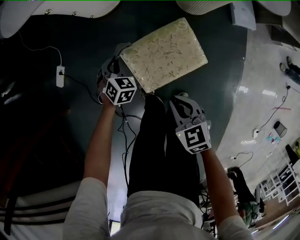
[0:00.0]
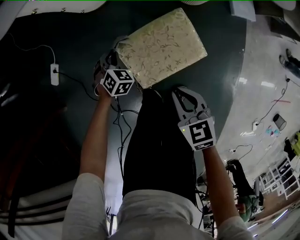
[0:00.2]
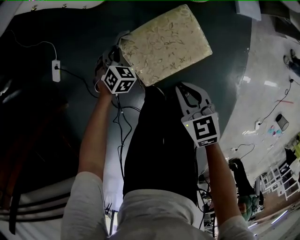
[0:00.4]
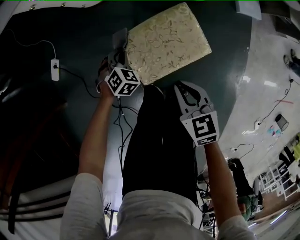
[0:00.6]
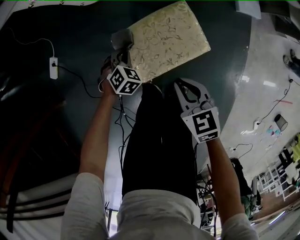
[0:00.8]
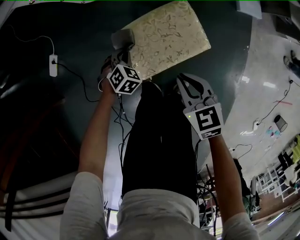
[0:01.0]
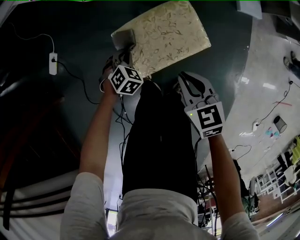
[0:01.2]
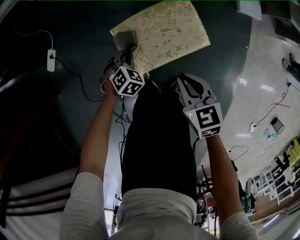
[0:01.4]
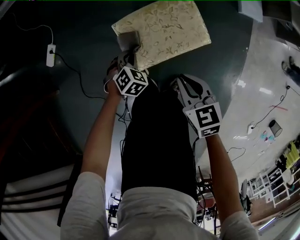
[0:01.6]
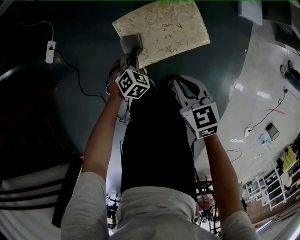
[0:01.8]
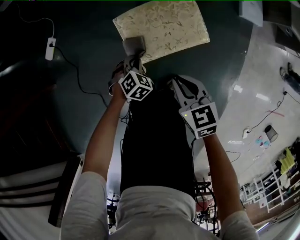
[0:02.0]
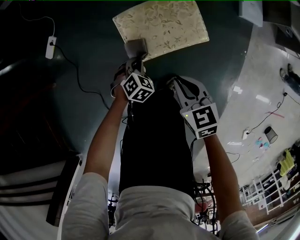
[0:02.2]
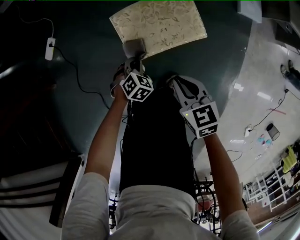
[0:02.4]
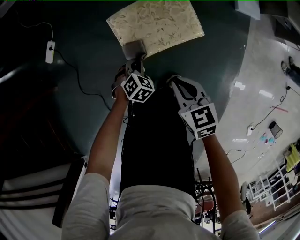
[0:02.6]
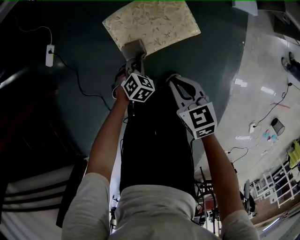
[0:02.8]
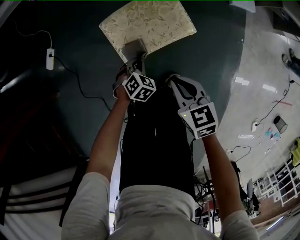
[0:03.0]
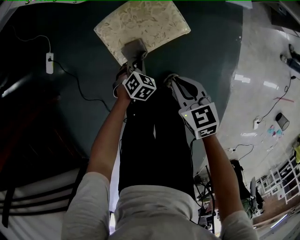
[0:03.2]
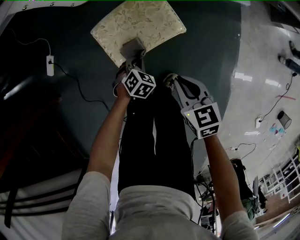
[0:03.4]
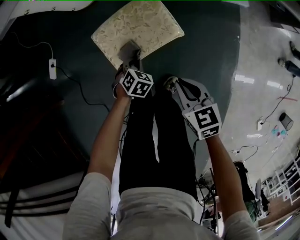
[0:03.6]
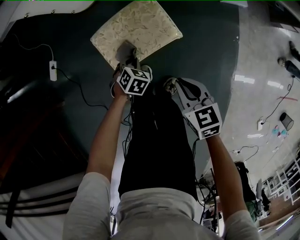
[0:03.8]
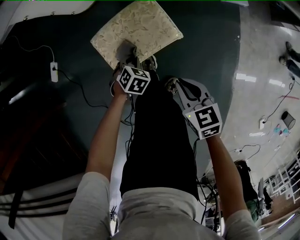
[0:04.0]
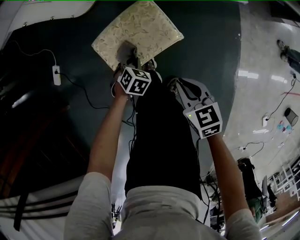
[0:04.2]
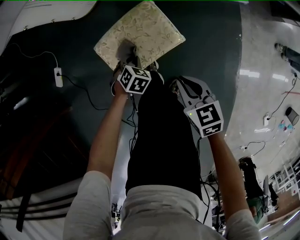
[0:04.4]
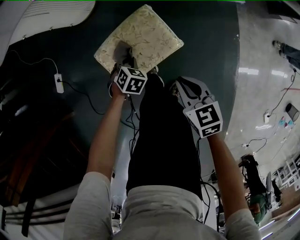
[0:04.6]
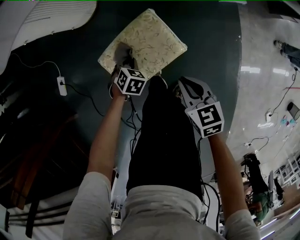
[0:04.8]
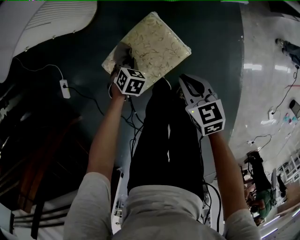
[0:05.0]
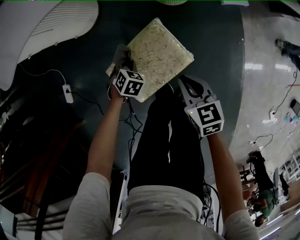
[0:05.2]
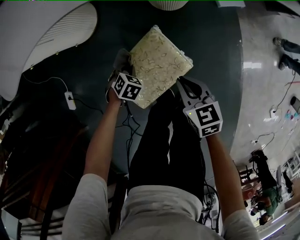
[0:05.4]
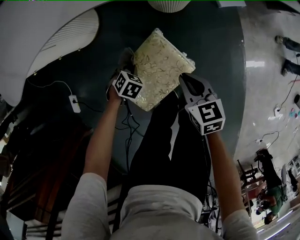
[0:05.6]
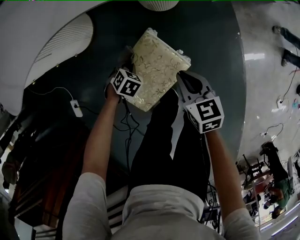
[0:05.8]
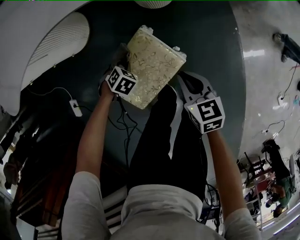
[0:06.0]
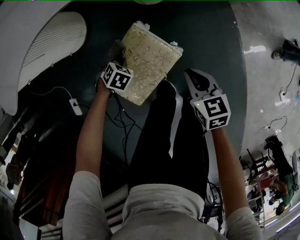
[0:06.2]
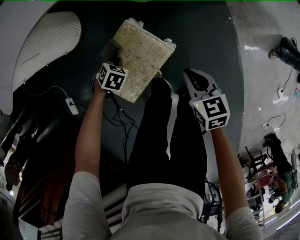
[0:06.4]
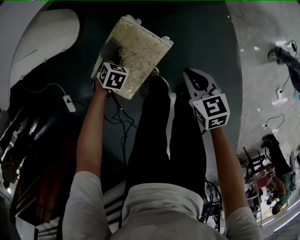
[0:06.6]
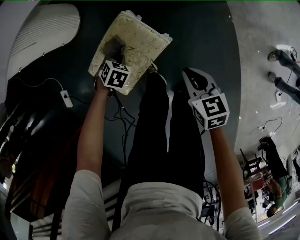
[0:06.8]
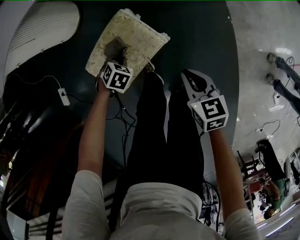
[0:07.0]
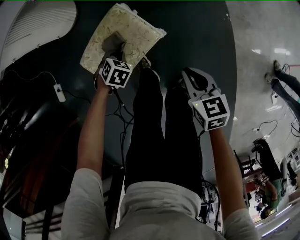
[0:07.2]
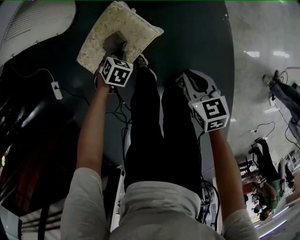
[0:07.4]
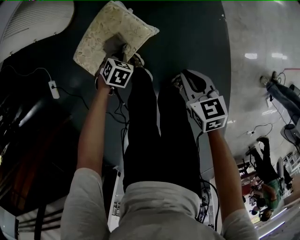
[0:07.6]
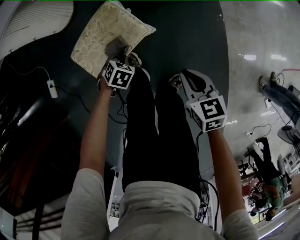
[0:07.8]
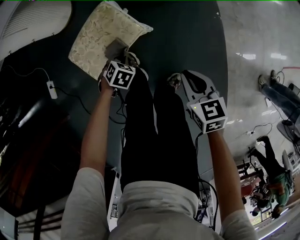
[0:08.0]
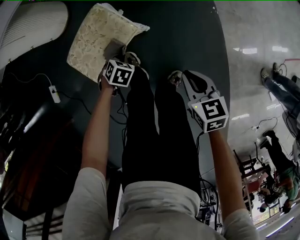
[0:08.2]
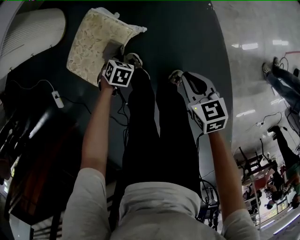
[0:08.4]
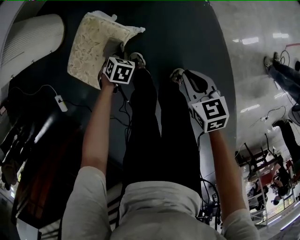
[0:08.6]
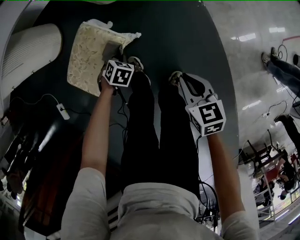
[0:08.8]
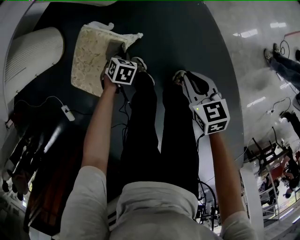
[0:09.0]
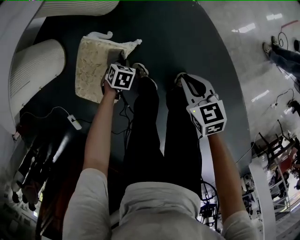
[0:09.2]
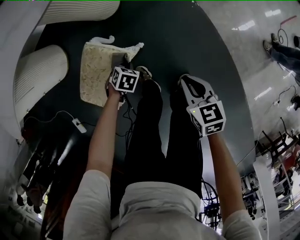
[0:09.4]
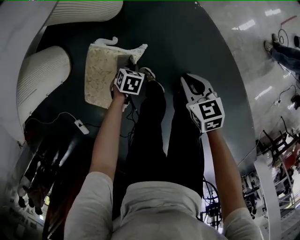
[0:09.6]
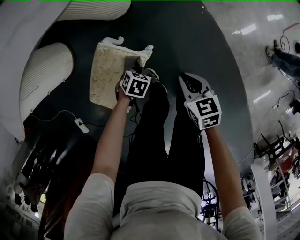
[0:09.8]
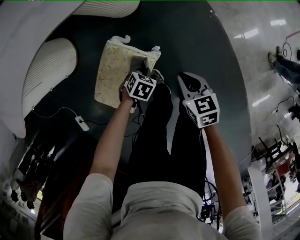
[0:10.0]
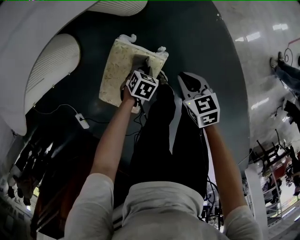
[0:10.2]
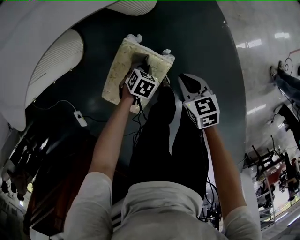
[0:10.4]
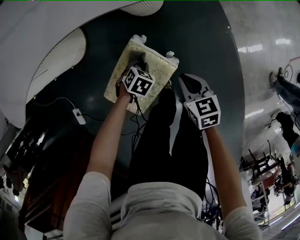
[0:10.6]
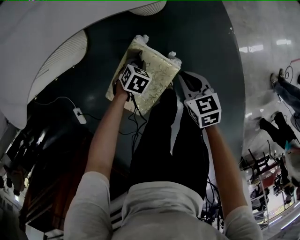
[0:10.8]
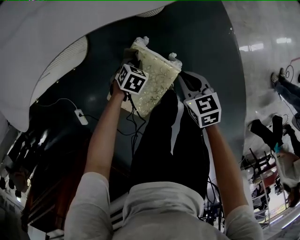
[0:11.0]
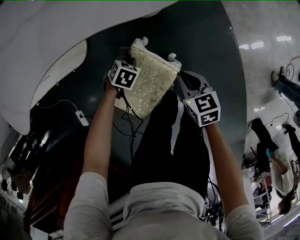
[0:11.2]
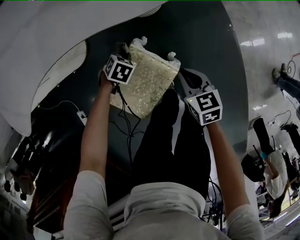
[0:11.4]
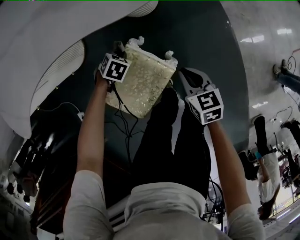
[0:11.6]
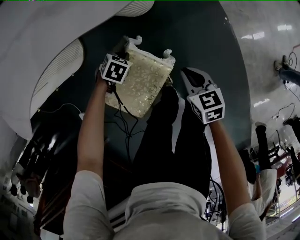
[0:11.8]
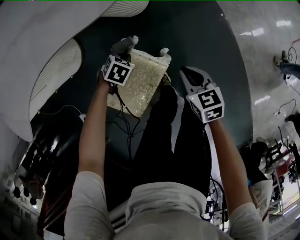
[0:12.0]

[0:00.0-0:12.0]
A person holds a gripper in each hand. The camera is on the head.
0.0 to 1.6 s: The left gripper goes roughly 15 cm backward and downward; the right gripper shifts by roughly 5 cm.
1.6 to 3.0 s: The right gripper moves backward, about 5 cm, while the left gripper is displaced backward and to the right by about 10 cm.
3.0 to 4.4 s: The right gripper travels to the right by about 10 cm. Meanwhile the left gripper goes approximately 10 cm forward and to the right.
4.4 to 6.0 s: The right gripper ends up some 15 cm from where it was, while the left gripper shifts by about 15 cm, and changes its angle by approximately 20 degrees.
6.0 to 7.6 s: The right gripper moves about 20 cm. The left gripper changes place by some 20 cm.
7.6 to 9.0 s: The left gripper changes place by approximately 10 cm. The right gripper changes place by roughly 10 cm.
9.0 to 10.4 s: The left gripper ends up some 10 cm from where it was, while the right gripper ends up about 25 cm from where it was.

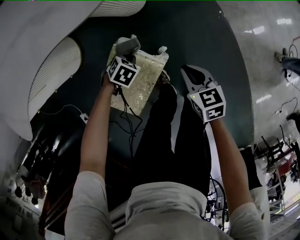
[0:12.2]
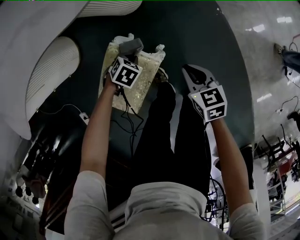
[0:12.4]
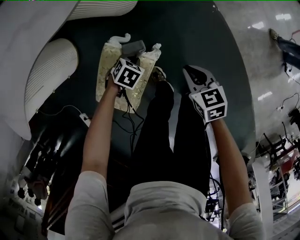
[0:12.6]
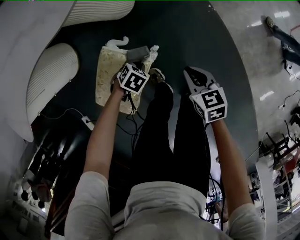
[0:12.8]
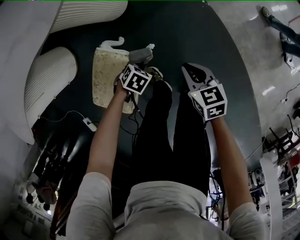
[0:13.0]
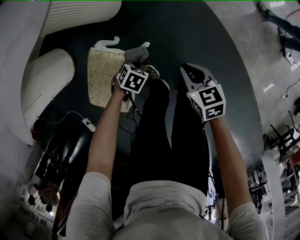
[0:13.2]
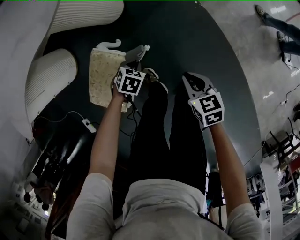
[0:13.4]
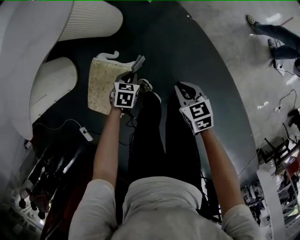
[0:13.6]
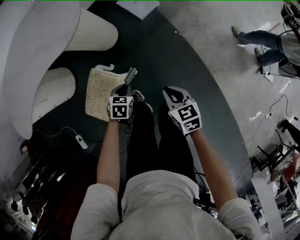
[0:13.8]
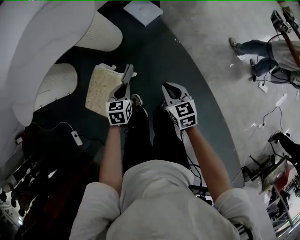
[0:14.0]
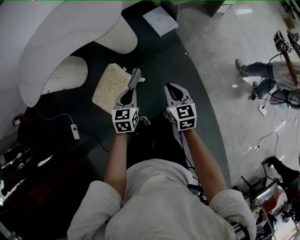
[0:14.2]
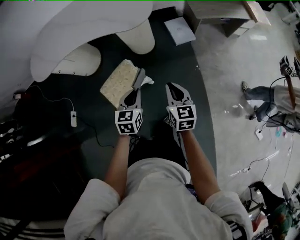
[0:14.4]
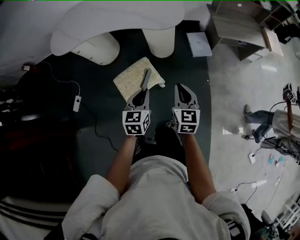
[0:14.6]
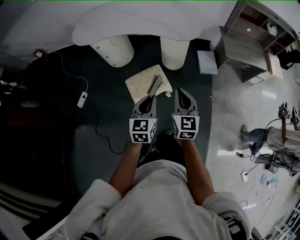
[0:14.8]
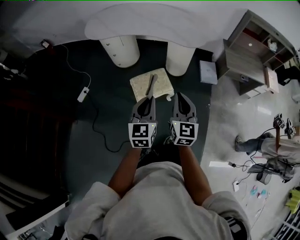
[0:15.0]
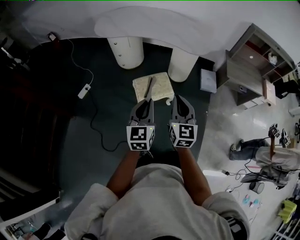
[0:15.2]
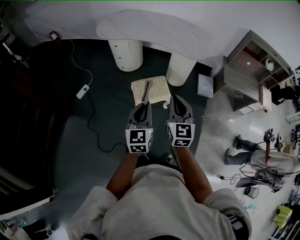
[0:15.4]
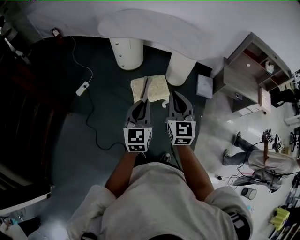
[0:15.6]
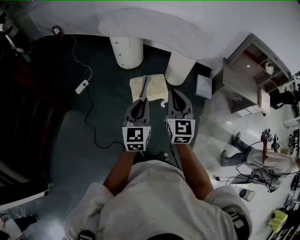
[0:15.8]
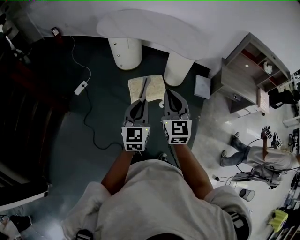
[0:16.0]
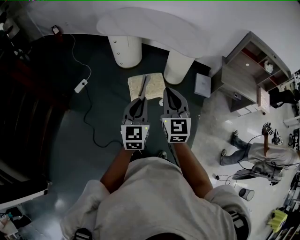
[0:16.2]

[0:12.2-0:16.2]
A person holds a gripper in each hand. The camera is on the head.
12.2 to 13.6 s: The right gripper changes place by roughly 20 cm. Meanwhile the left gripper shifts by about 20 cm.
13.6 to 14.8 s: The two grippers go approximately 50 cm upward. The right gripper points its fingers about 40 degrees further upward. The left gripper angles its fingers upward, by some 50 degrees.
14.8 to 16.2 s: The right gripper is displaced upward, backward and to the left by some 20 cm, and rotates about 20 degrees. Meanwhile the left gripper moves backward and upward, approximately 20 cm, and turns by about 20 degrees.

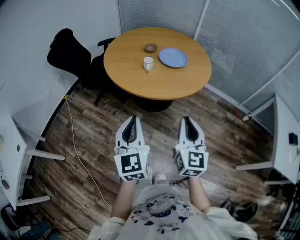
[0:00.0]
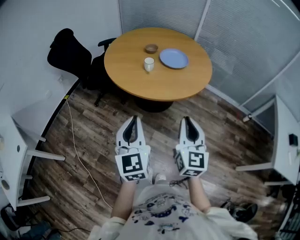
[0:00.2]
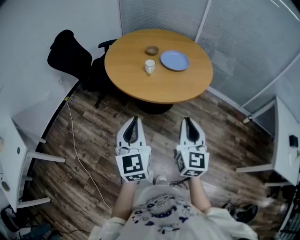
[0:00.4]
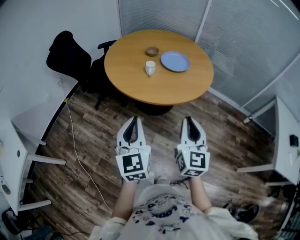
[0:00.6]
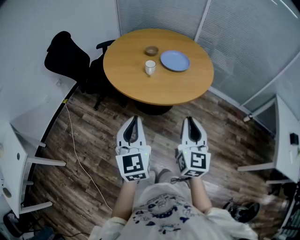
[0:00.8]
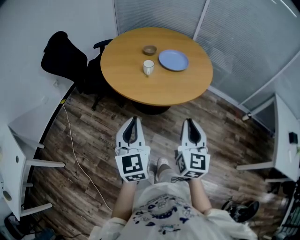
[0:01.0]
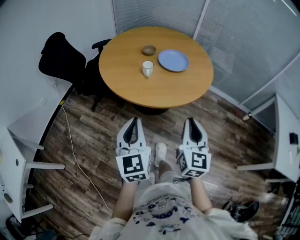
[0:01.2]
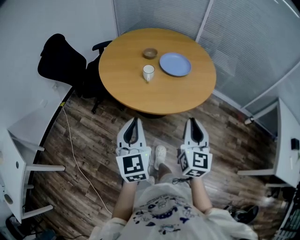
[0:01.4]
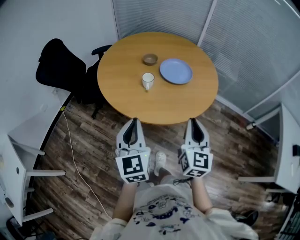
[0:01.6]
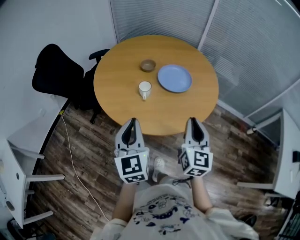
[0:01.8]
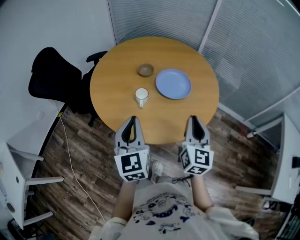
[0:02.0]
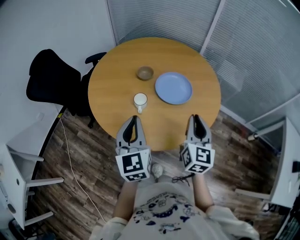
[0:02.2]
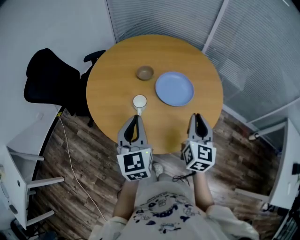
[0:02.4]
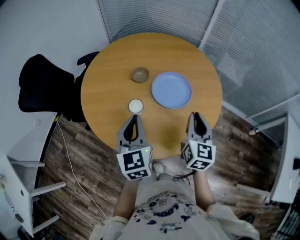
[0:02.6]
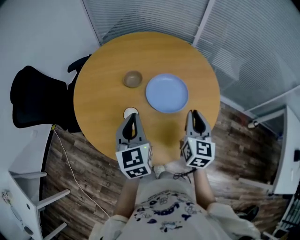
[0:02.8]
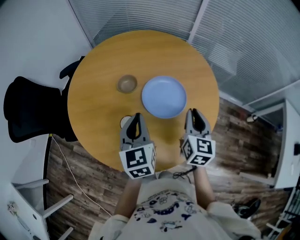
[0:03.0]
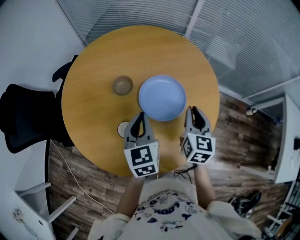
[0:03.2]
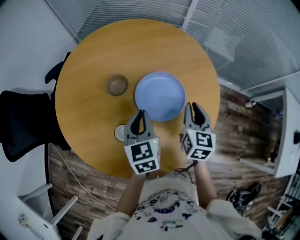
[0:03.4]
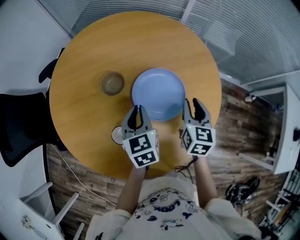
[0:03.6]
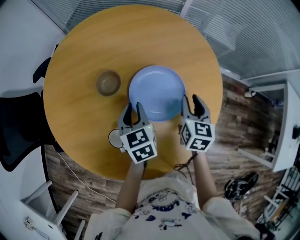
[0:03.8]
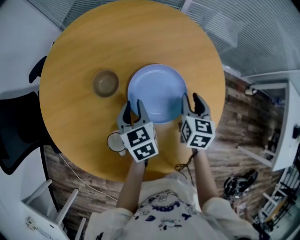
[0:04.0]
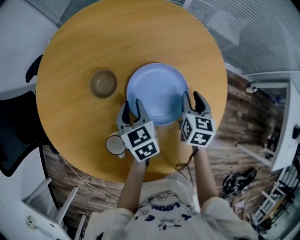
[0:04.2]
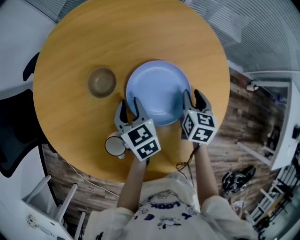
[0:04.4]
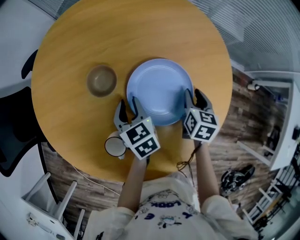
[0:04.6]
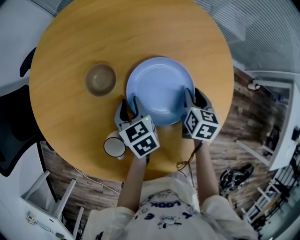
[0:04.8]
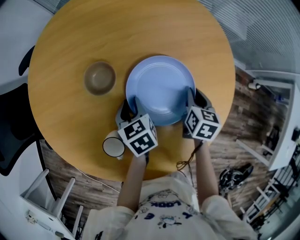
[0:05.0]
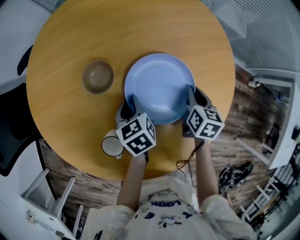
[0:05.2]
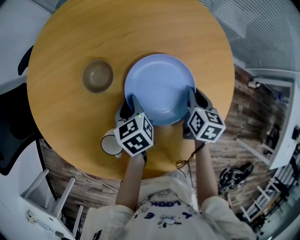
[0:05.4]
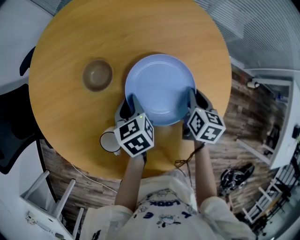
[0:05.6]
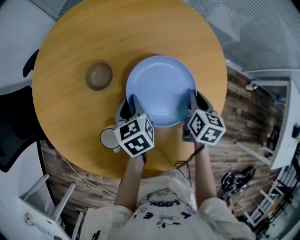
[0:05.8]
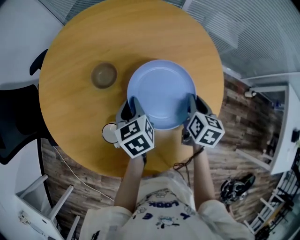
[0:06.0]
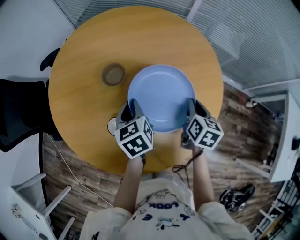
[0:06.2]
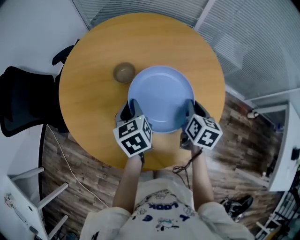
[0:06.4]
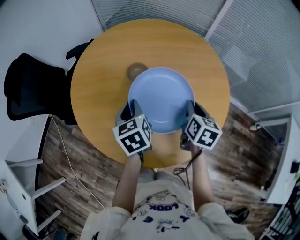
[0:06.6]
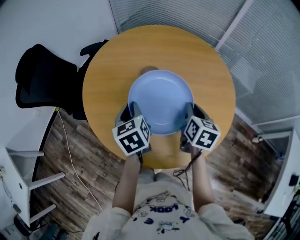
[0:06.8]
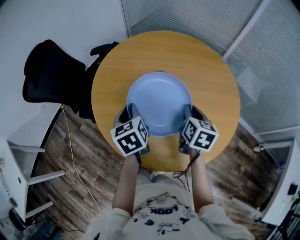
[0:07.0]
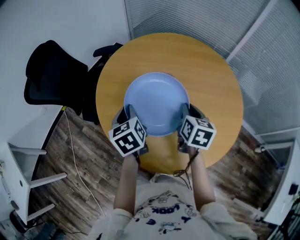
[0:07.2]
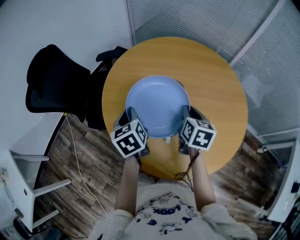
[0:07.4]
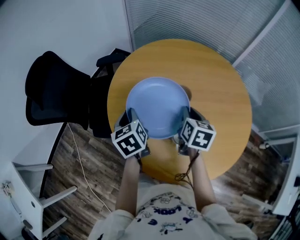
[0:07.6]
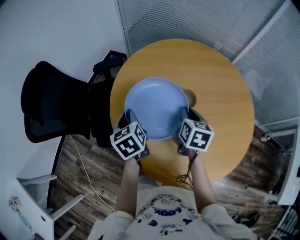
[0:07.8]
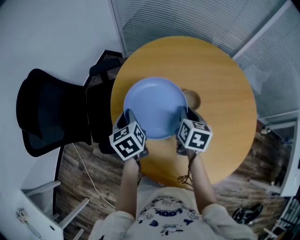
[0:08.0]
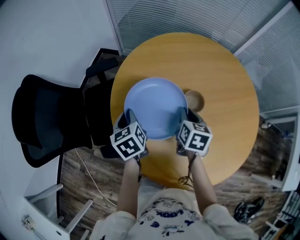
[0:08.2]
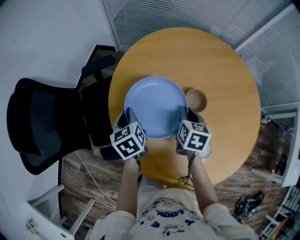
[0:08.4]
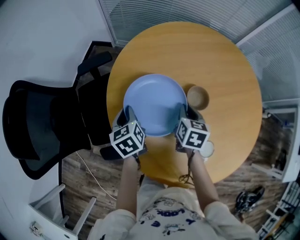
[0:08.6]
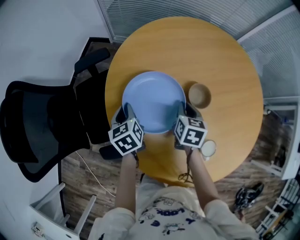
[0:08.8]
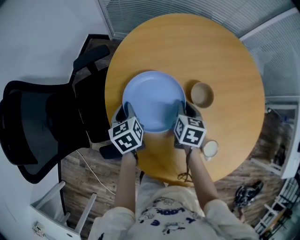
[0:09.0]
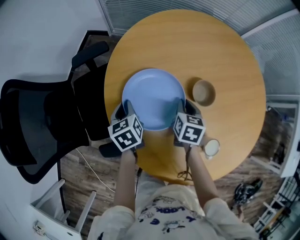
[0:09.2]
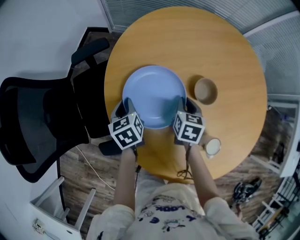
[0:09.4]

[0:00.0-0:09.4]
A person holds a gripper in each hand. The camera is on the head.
0.0 to 1.6 s: The grippers both shift forward by about 20 cm.
1.6 to 3.2 s: The grippers both shift forward by about 35 cm. The right gripper rotates about 20 degrees. The left gripper swivels roughly 20 degrees.
3.2 to 4.8 s: The right gripper is displaced downward and forward by about 20 cm, swivels approximately 30 degrees, and opens its fingers. Meanwhile the left gripper heads downward, covering some 20 cm, rotates roughly 30 degrees, and opens up.
4.8 to 6.2 s: The left gripper goes about 10 cm upward. Meanwhile the right gripper moves upward and backward, approximately 10 cm, and closes its fingers.
6.2 to 7.8 s: The two grippers go about 35 cm to the left.
7.8 to 9.4 s: The left gripper goes some 20 cm downward and forward, while the right gripper moves downward, some 15 cm.
